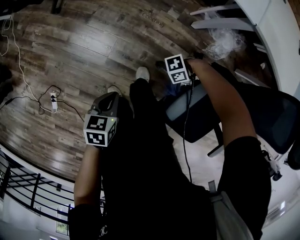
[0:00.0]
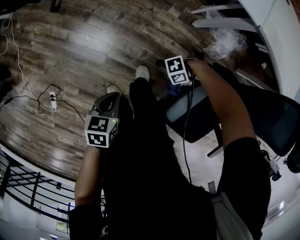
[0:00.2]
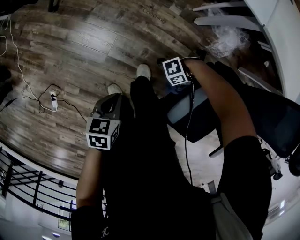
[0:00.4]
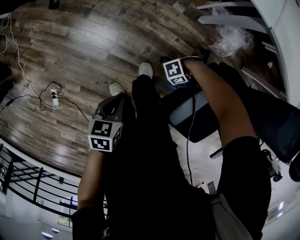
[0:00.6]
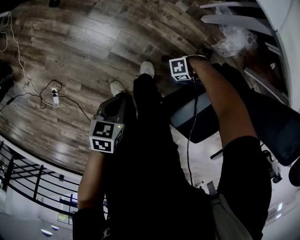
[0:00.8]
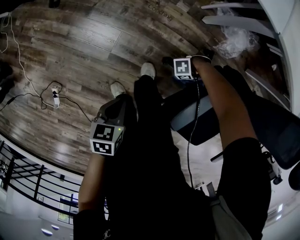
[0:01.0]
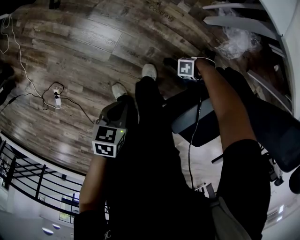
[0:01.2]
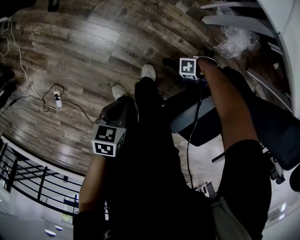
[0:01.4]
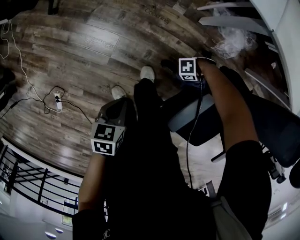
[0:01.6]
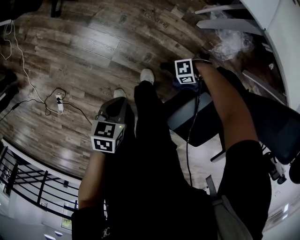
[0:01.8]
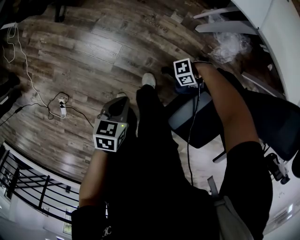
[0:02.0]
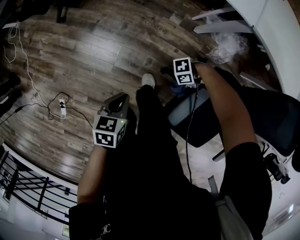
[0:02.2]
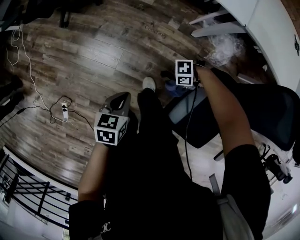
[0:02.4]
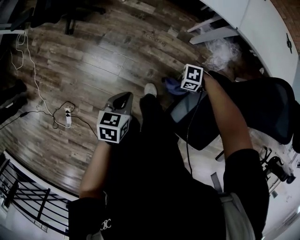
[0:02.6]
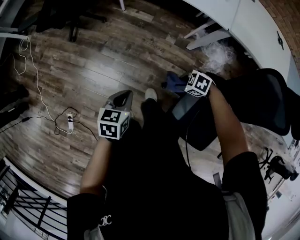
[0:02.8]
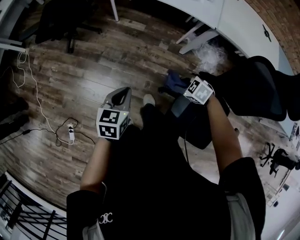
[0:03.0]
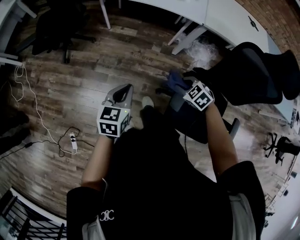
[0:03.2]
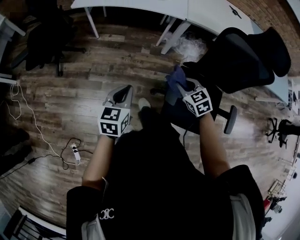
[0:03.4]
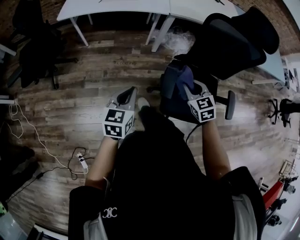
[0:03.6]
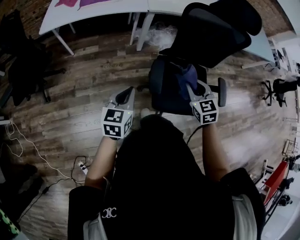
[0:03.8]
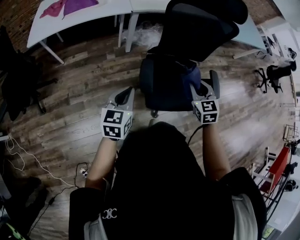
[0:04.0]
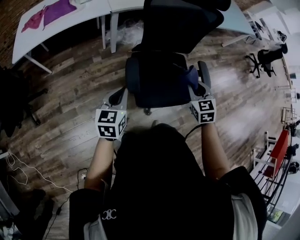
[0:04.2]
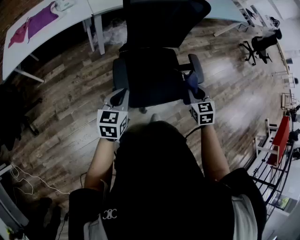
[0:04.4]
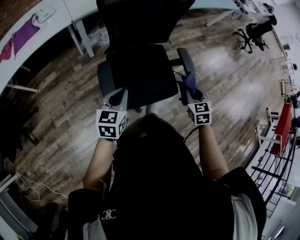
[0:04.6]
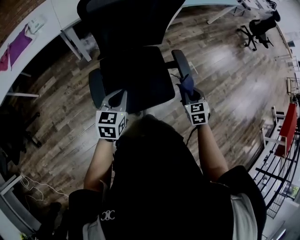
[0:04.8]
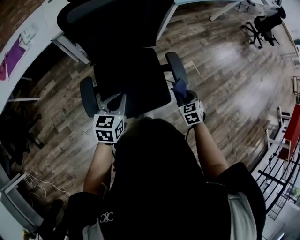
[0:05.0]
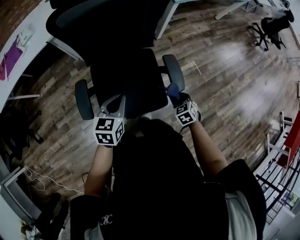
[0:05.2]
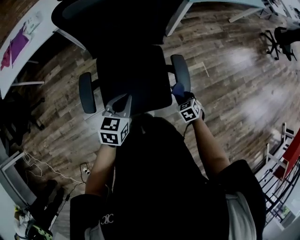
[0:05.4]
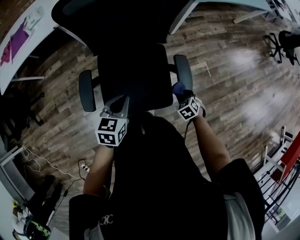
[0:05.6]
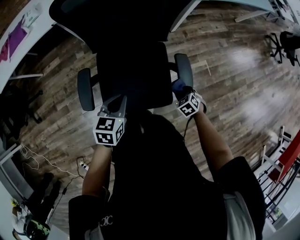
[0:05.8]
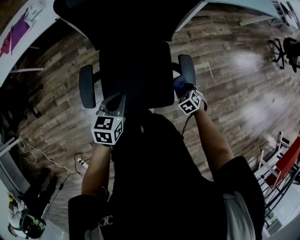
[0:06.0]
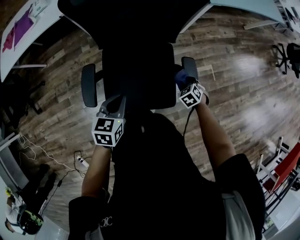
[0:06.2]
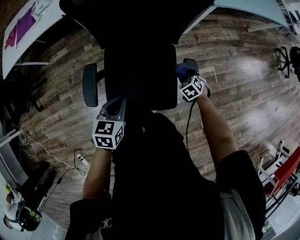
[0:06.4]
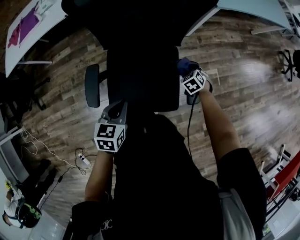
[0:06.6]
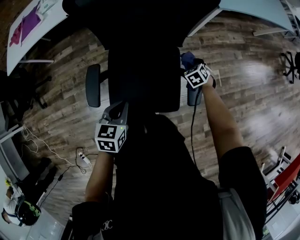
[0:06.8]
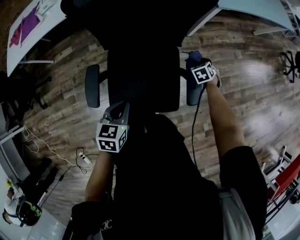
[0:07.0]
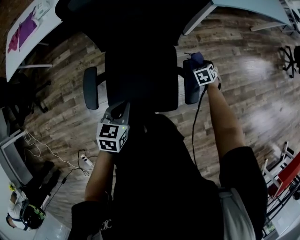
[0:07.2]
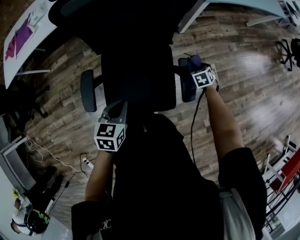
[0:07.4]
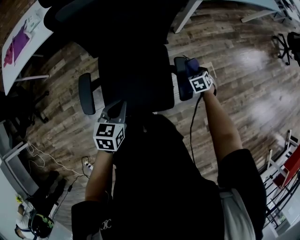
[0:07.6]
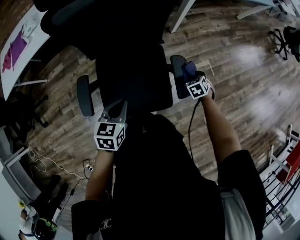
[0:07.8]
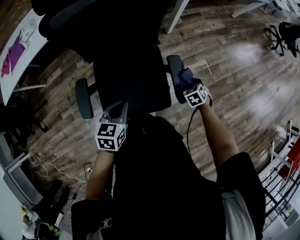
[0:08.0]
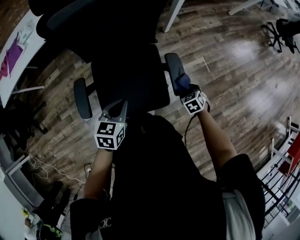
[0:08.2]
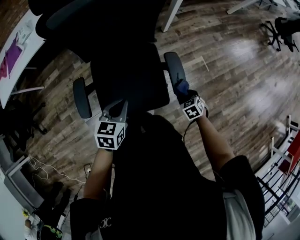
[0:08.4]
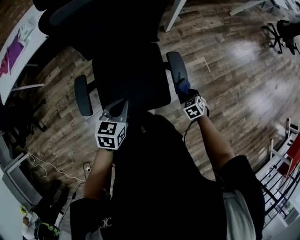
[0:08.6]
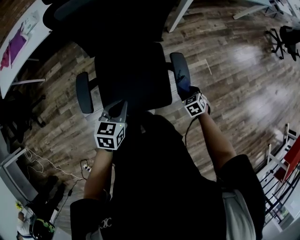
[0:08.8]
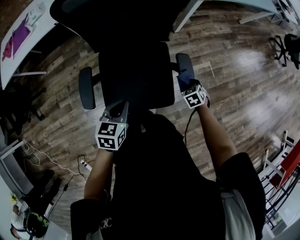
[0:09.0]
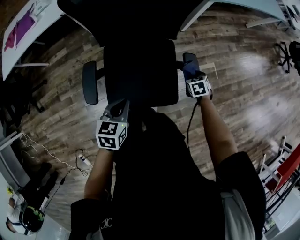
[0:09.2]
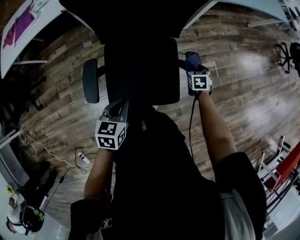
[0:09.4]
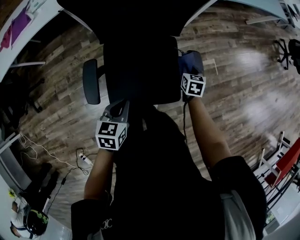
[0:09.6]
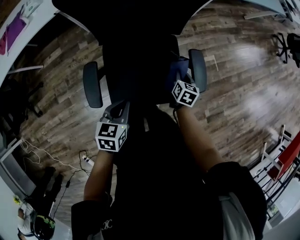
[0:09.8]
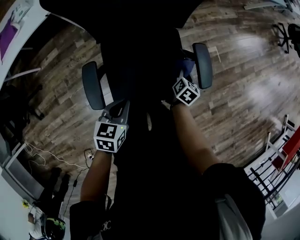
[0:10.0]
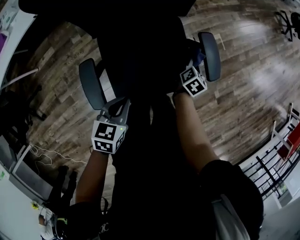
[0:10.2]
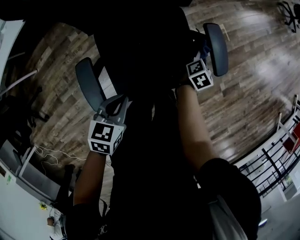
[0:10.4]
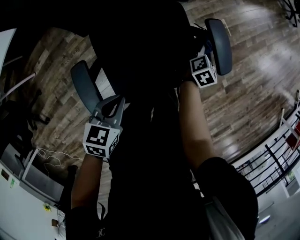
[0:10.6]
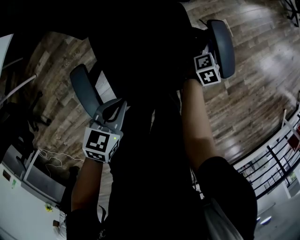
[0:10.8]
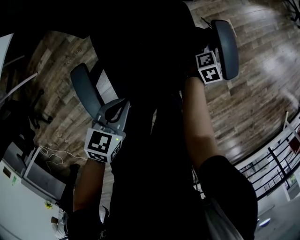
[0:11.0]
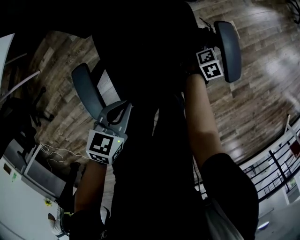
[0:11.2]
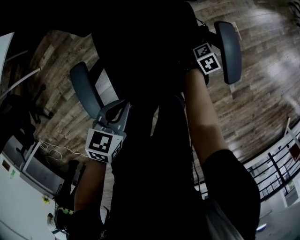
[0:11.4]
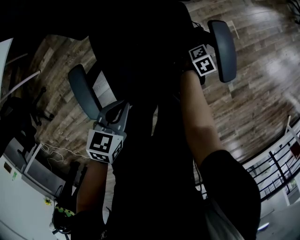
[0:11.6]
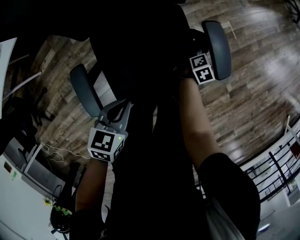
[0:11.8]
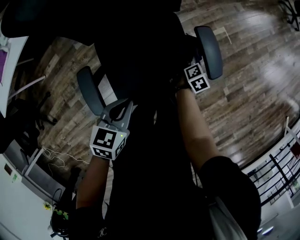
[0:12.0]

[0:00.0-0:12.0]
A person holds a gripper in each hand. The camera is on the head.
0:00.0 to 0:01.6: The right gripper heads downward and to the left, covering some 15 cm, and turns by some 20 degrees.
0:01.6 to 0:03.0: The left gripper moves upward, about 15 cm, and changes its angle by some 30 degrees; the right gripper heads upward, covering roughly 25 cm, and swivels roughly 60 degrees.
0:03.0 to 0:04.4: The right gripper ends up approximately 40 cm from where it was, and changes its angle by approximately 90 degrees. The left gripper changes place by some 25 cm, and changes its angle by about 50 degrees.
0:04.4 to 0:06.0: The left gripper travels to the right and forward by some 25 cm; the right gripper is displaced downward, to the right and forward by about 35 cm, and tips its fingers downward by roughly 30 degrees.
0:06.0 to 0:07.6: The right gripper heads forward and to the right, covering roughly 15 cm.
0:07.6 to 0:09.0: The right gripper goes some 10 cm backward.
0:09.0 to 0:10.4: The left gripper shifts by approximately 15 cm, and changes its angle by approximately 20 degrees. Meanwhile the right gripper rolls clockwise, seen from behind, by about 80 degrees.
0:10.4 to 0:12.0: The left gripper ends up roughly 5 cm from where it was. Meanwhile the right gripper travels downward and back again, approximately 10 cm each way.

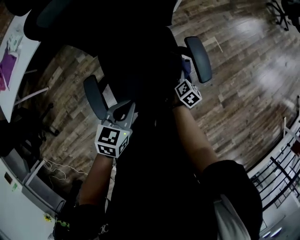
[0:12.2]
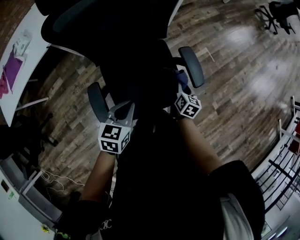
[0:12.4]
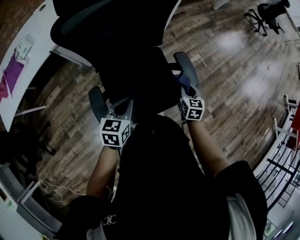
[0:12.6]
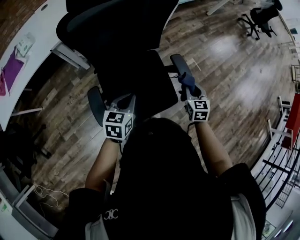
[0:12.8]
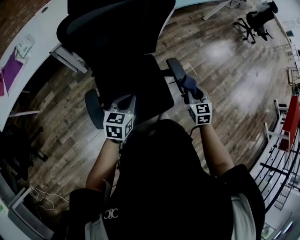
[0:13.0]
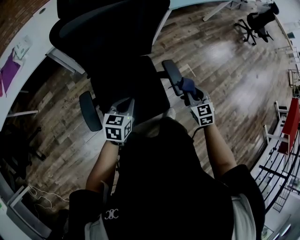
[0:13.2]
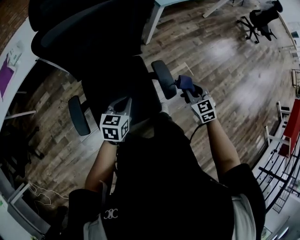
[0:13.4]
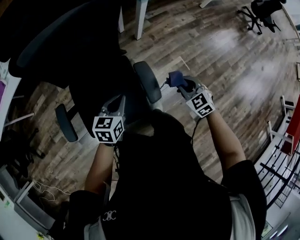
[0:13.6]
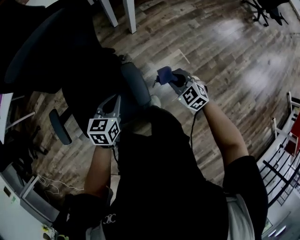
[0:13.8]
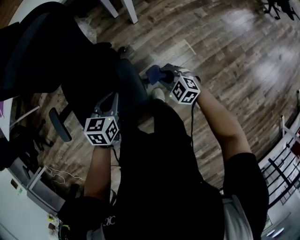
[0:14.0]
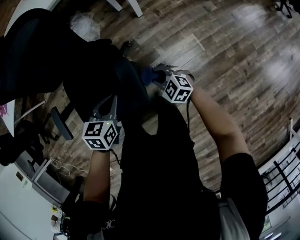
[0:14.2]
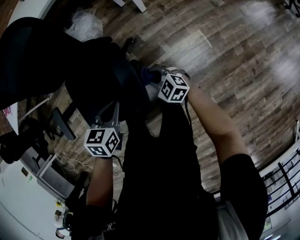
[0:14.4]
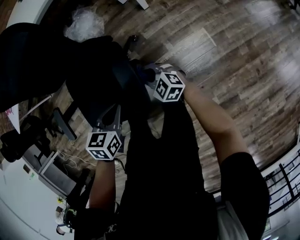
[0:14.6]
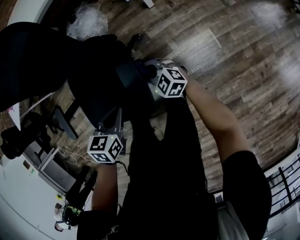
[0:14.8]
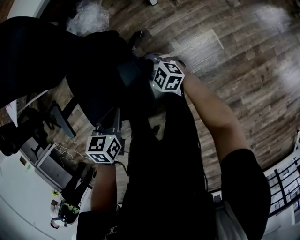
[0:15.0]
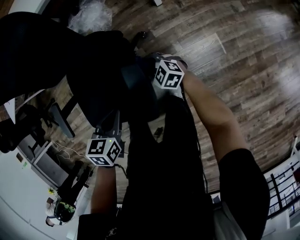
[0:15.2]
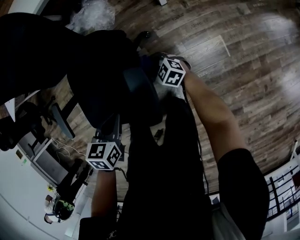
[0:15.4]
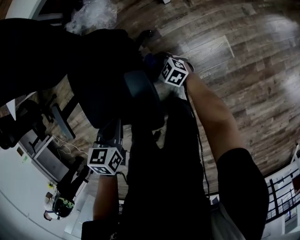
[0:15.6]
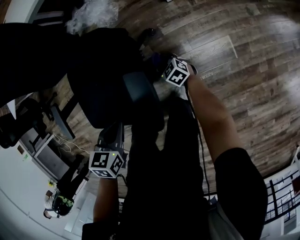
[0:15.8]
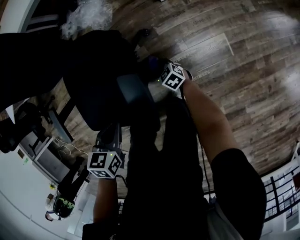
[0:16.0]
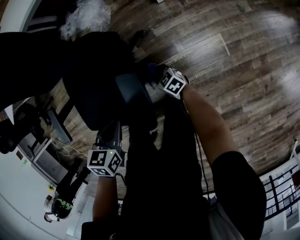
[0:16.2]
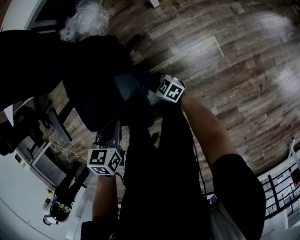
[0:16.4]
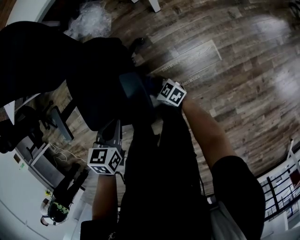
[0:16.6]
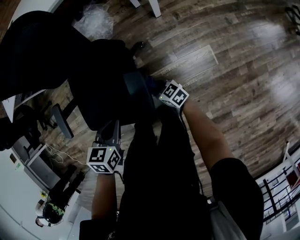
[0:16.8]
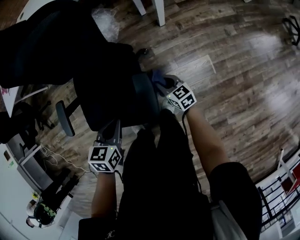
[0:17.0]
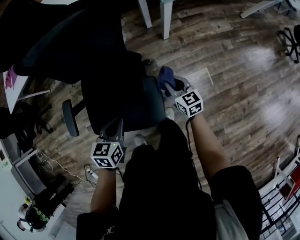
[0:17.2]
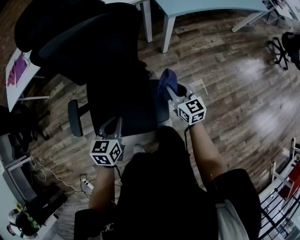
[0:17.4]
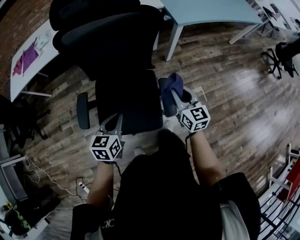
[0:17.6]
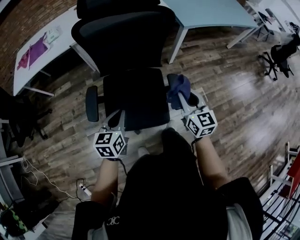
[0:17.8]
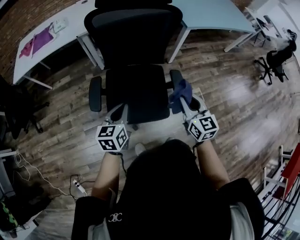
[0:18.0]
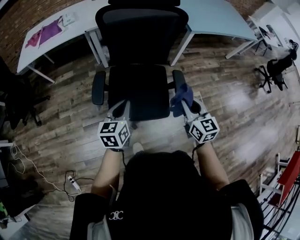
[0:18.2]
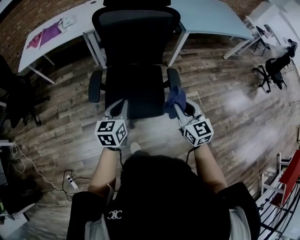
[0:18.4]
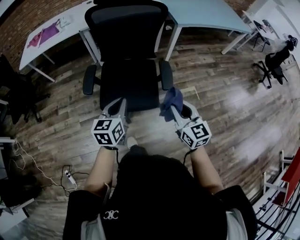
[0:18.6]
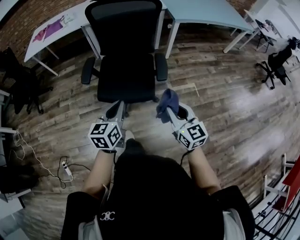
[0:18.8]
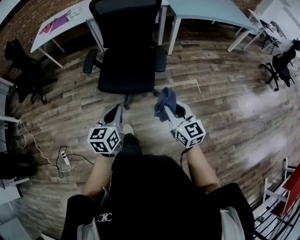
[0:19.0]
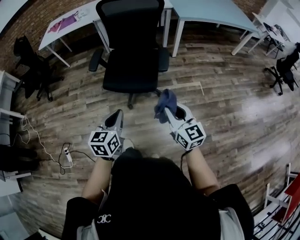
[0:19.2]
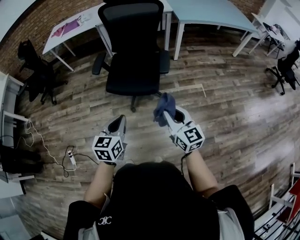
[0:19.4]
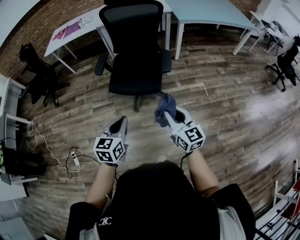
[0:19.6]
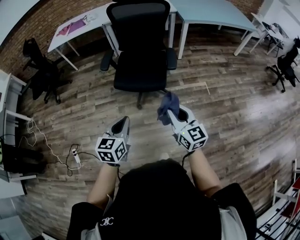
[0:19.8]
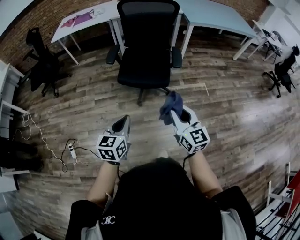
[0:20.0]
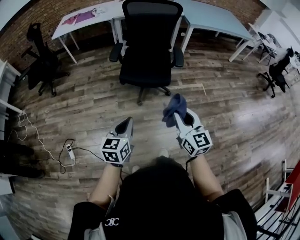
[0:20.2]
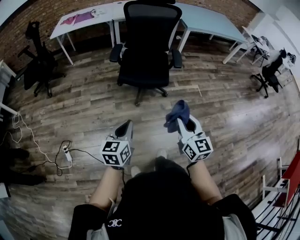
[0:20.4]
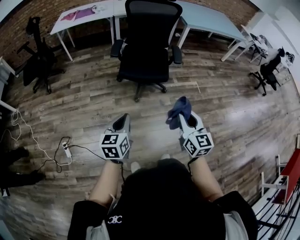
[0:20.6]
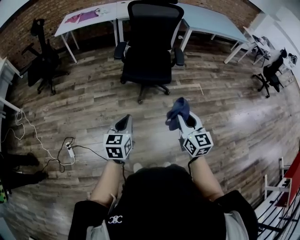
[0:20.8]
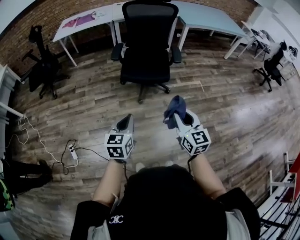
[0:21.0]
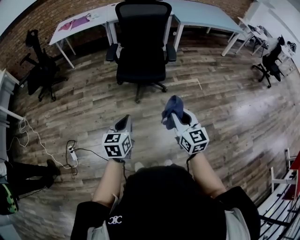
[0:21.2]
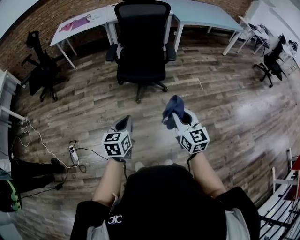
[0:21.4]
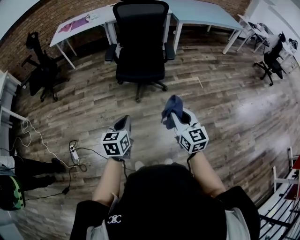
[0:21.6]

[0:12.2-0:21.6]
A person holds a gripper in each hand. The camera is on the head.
0:12.2 to 0:13.8: The left gripper shifts by approximately 25 cm; the right gripper moves approximately 20 cm, and twists approximately 80 degrees counterclockwise, seen from behind.
0:13.8 to 0:15.4: The right gripper travels downward by some 20 cm, and changes its angle by roughly 30 degrees; the left gripper moves downward, some 10 cm, and rotates approximately 20 degrees.
0:15.4 to 0:17.0: The left gripper heads upward, covering about 5 cm. Meanwhile the right gripper shifts approximately 10 cm upward and backward, and turns by approximately 30 degrees.
0:17.0 to 0:18.4: The right gripper moves upward, backward and to the left, about 50 cm, and turns by approximately 30 degrees. The left gripper heads to the left, backward and upward, covering some 30 cm, and points its fingers approximately 30 degrees further upward.
0:18.4 to 0:20.0: Both grippers move backward, approximately 40 cm.
0:20.0 to 0:21.6: The grippers both shift backward by roughly 10 cm. The left gripper travels to the left and back again, roughly 10 cm each way.

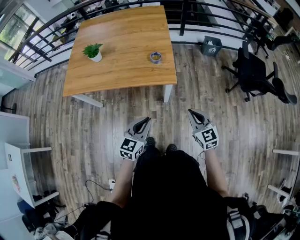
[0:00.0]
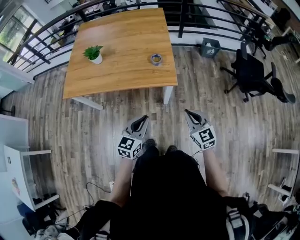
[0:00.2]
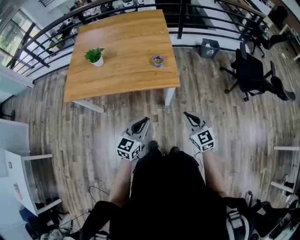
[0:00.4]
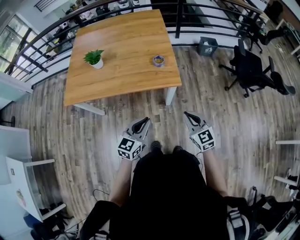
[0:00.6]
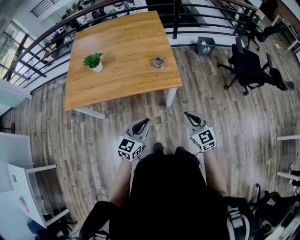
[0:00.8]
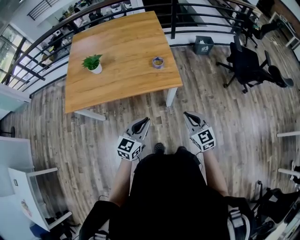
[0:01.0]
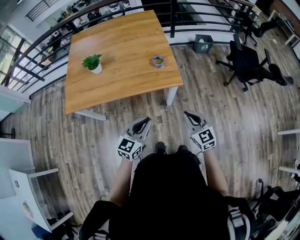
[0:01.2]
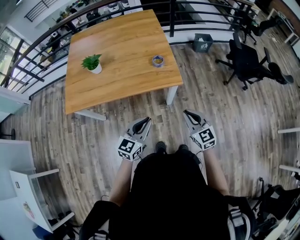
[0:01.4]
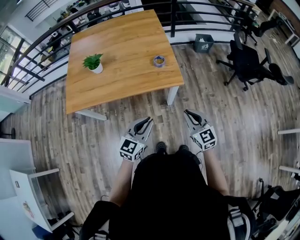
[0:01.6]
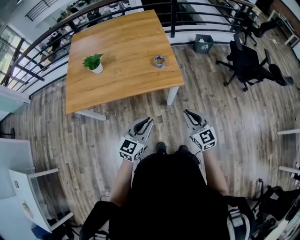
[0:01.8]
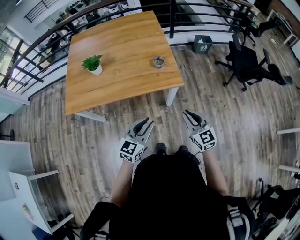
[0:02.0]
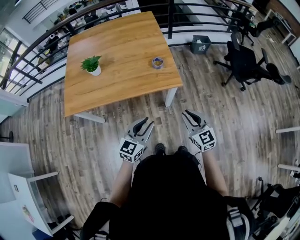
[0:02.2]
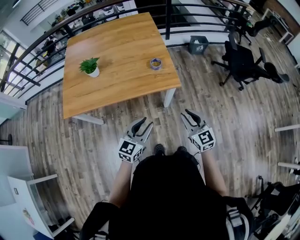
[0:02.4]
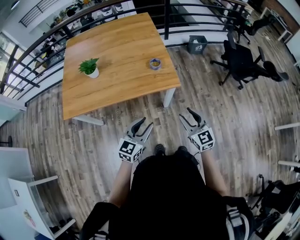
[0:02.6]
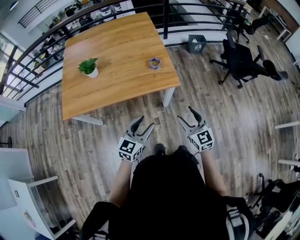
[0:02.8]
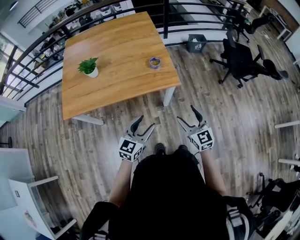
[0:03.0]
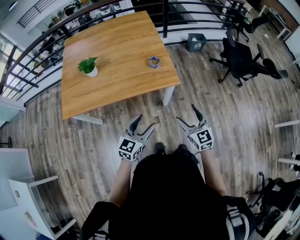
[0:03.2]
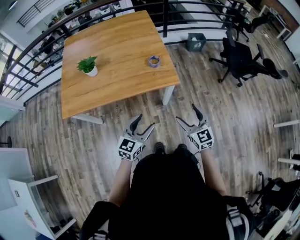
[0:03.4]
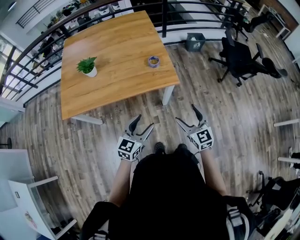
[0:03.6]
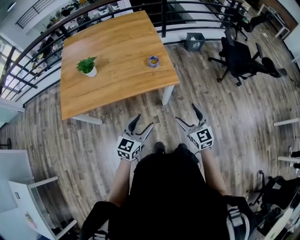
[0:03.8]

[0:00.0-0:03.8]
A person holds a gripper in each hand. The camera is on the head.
0:00.0 to 0:01.2: The two grippers go roughly 10 cm to the left.
0:01.2 to 0:02.6: The right gripper opens. The left gripper opens up.
0:02.6 to 0:03.8: The right gripper opens, while the left gripper opens up.
